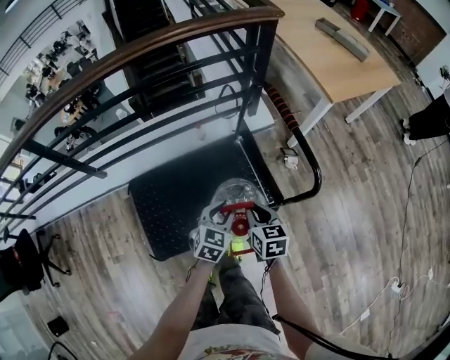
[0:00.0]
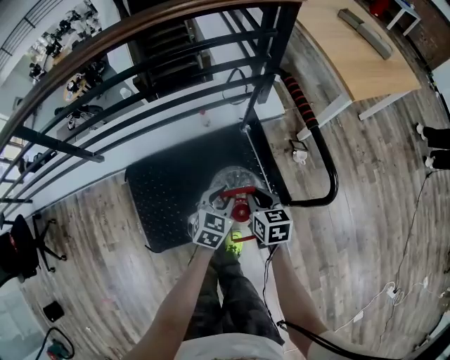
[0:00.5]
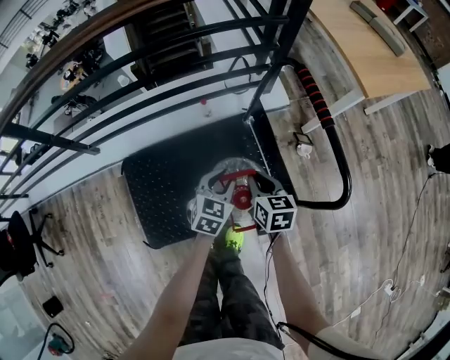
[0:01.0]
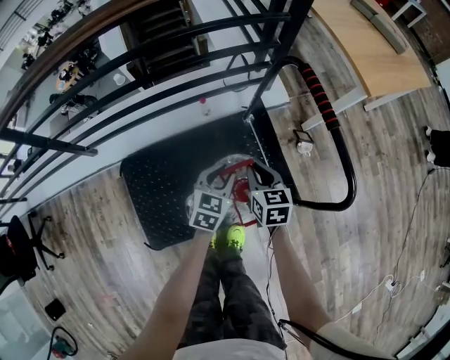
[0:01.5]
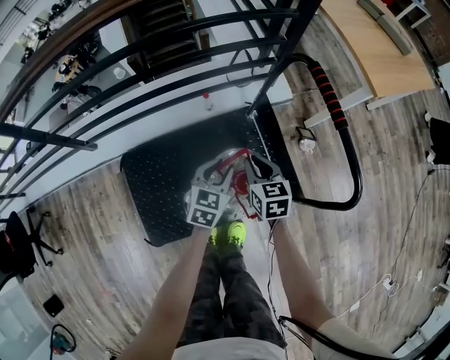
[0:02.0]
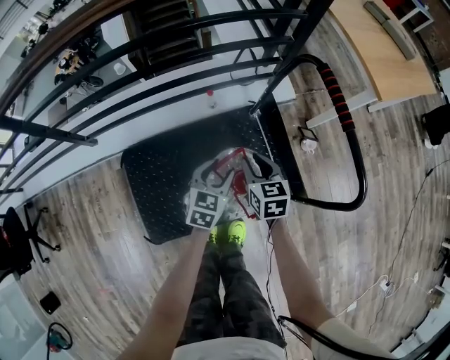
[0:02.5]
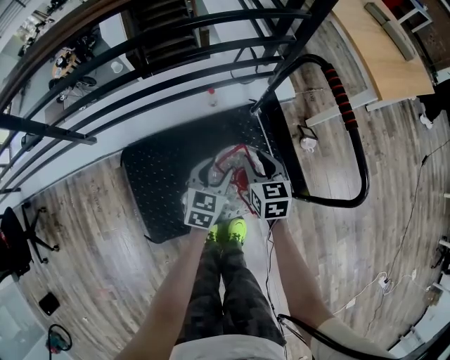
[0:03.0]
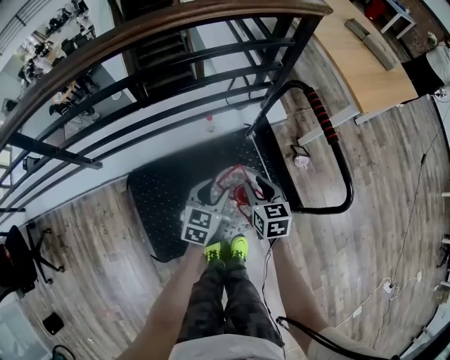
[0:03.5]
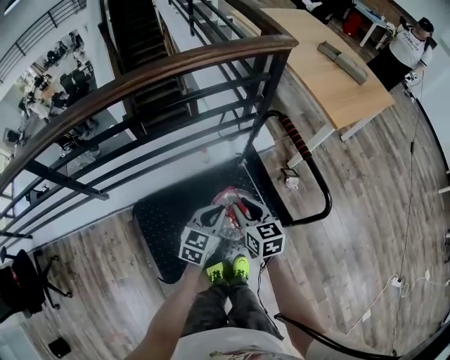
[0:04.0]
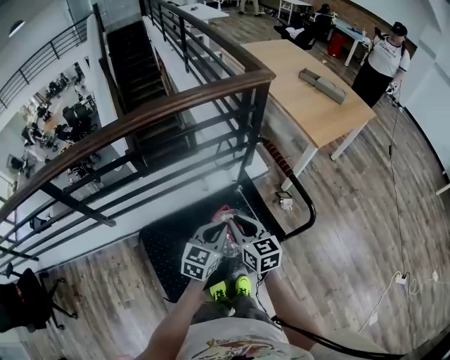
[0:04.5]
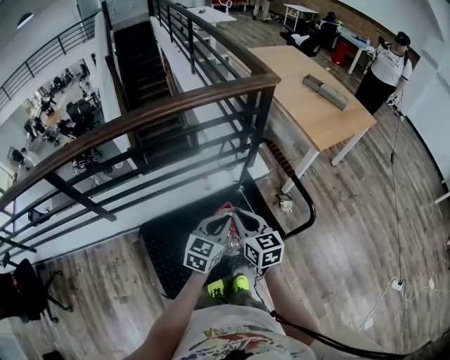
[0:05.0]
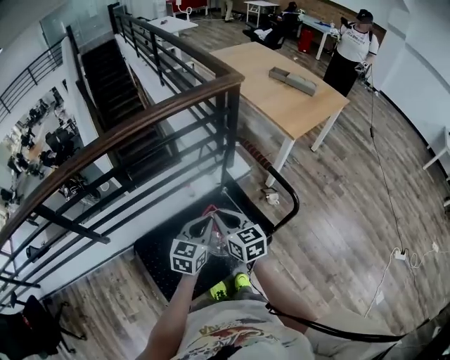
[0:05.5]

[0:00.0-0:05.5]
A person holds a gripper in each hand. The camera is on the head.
0:00.0 to 0:02.0: The grippers both shift forward, downward and to the left by approximately 20 cm.
0:02.0 to 0:03.5: The left gripper heads to the left and upward, covering about 10 cm. Meanwhile the right gripper is displaced upward by approximately 5 cm.
0:03.5 to 0:05.5: The grippers both shift upward by roughly 25 cm. The left gripper closes. Meanwhile the right gripper closes up.

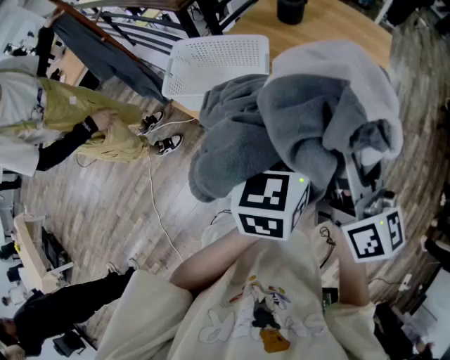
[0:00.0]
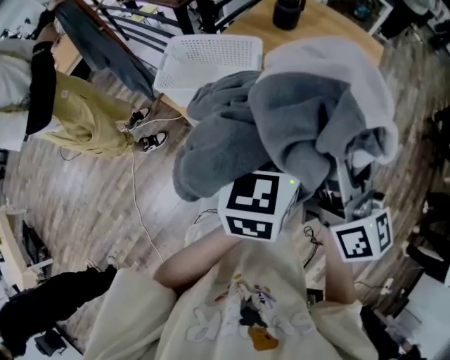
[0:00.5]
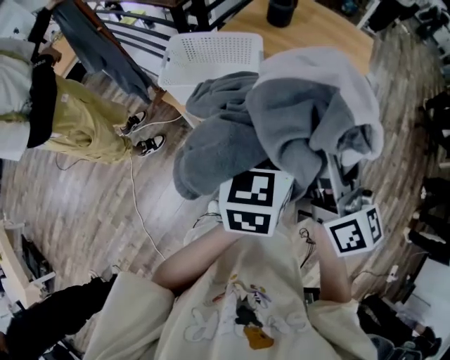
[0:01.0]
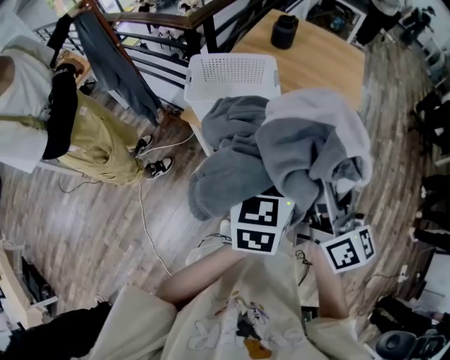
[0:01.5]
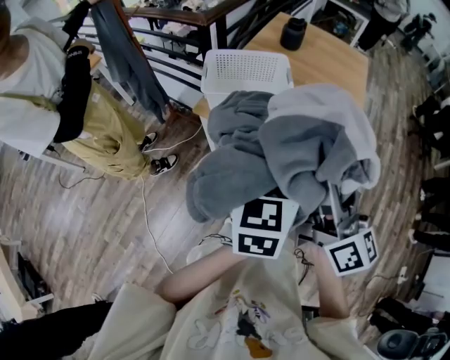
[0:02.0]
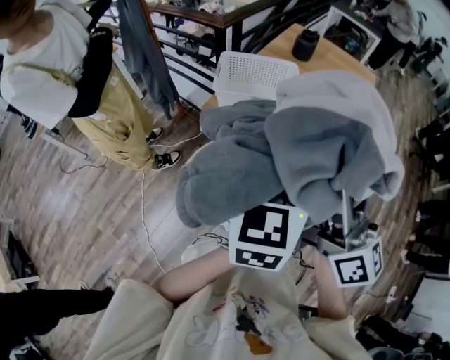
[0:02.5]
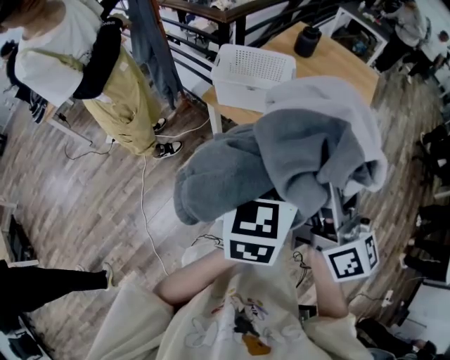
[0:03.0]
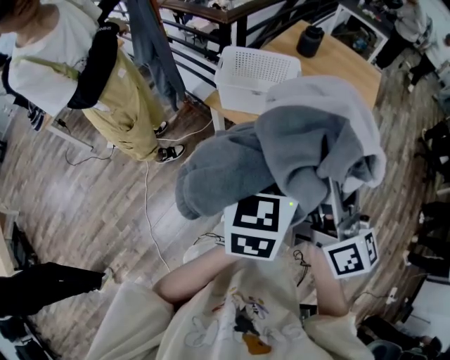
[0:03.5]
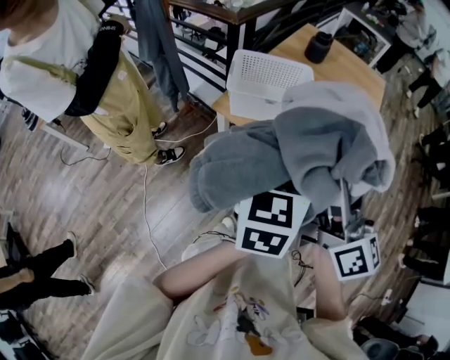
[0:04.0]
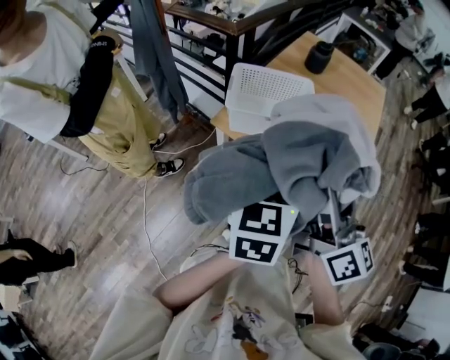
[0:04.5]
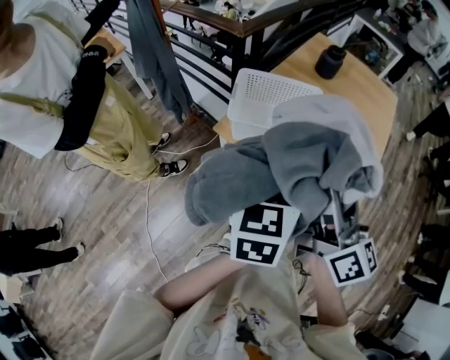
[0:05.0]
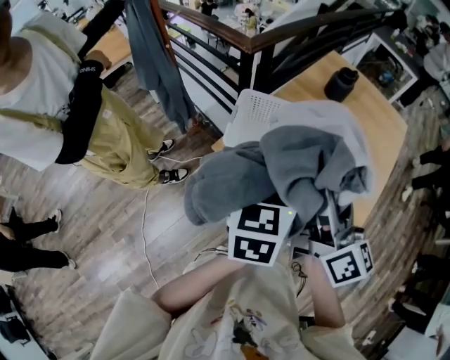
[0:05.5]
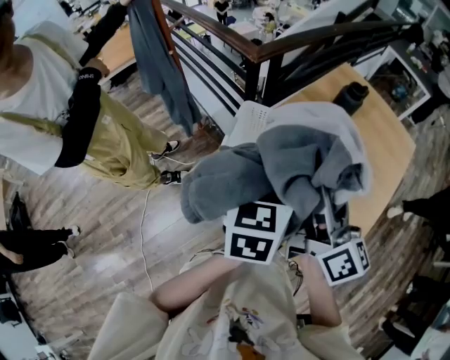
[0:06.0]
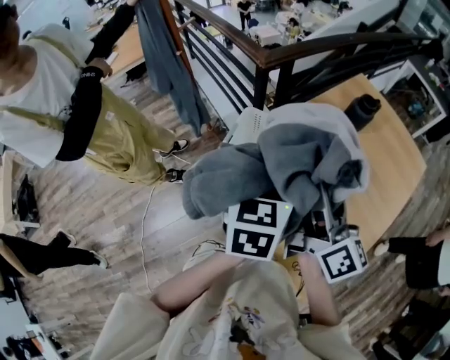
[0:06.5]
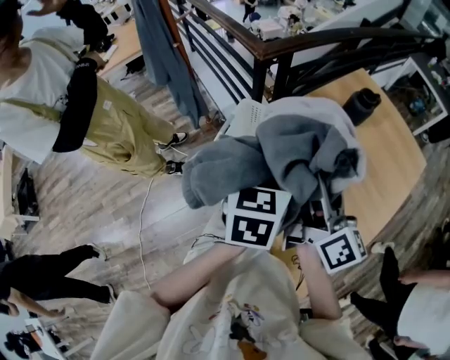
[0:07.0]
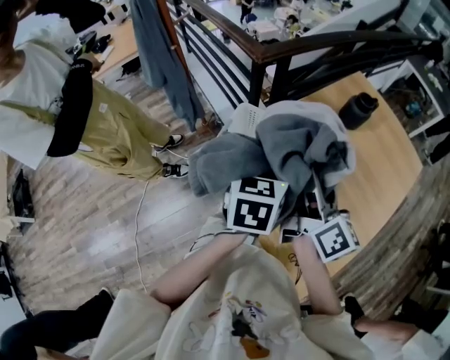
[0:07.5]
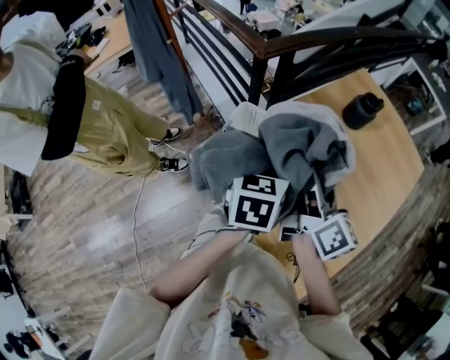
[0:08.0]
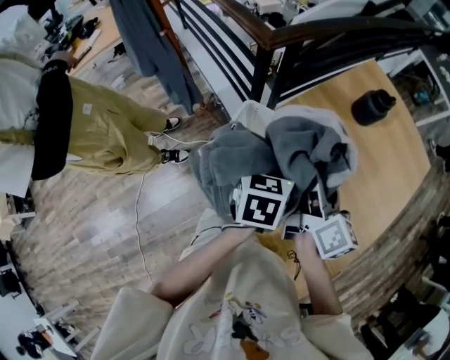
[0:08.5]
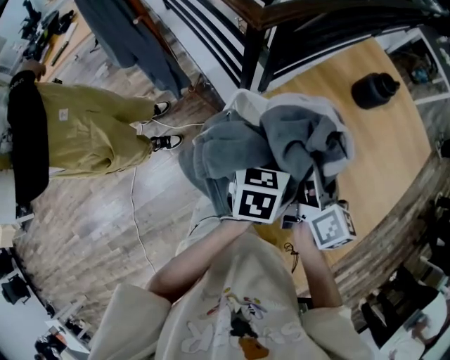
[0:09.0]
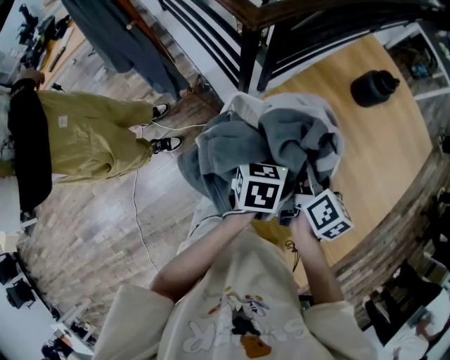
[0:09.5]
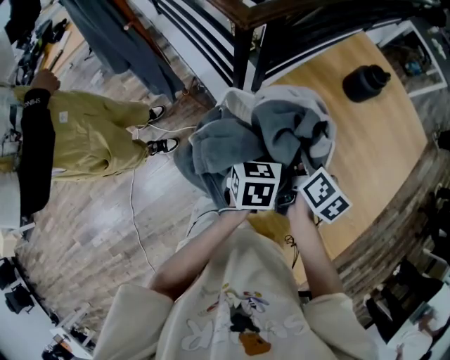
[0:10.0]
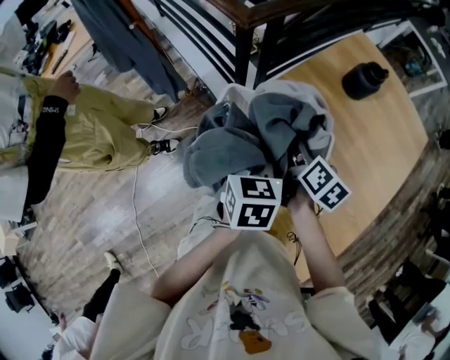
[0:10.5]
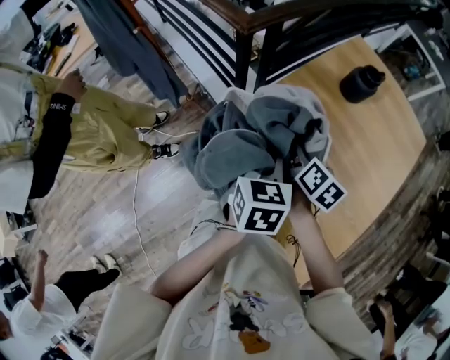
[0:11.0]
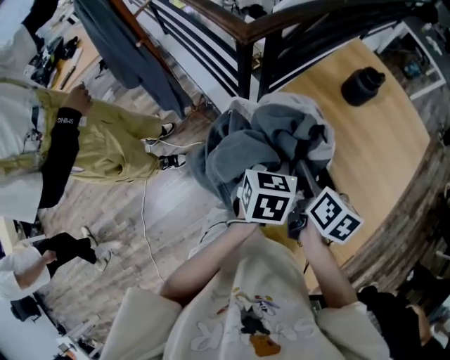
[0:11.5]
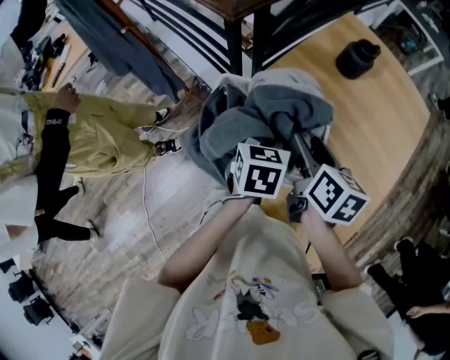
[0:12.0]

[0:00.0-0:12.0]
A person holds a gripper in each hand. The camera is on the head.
0:00.0 to 0:02.0: The grippers both shift to the left and backward by approximately 25 cm.
0:02.0 to 0:04.0: The left gripper shifts by roughly 5 cm. Meanwhile the right gripper moves approximately 5 cm.
0:04.0 to 0:06.0: Both grippers travel together forward, approximately 25 cm.
0:06.0 to 0:08.0: The grippers both shift forward and downward by approximately 15 cm.
0:08.0 to 0:10.0: The two grippers go some 15 cm downward and forward. The right gripper changes its angle by roughly 30 degrees.
0:10.0 to 0:12.0: The left gripper shifts by some 5 cm. Meanwhile the right gripper is displaced backward and upward by about 10 cm.

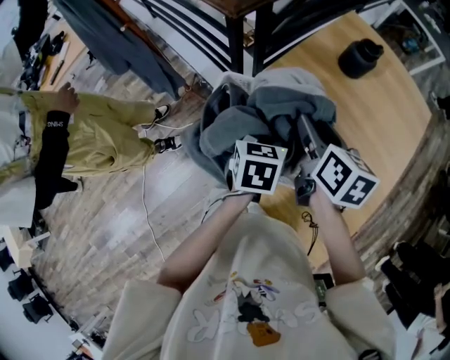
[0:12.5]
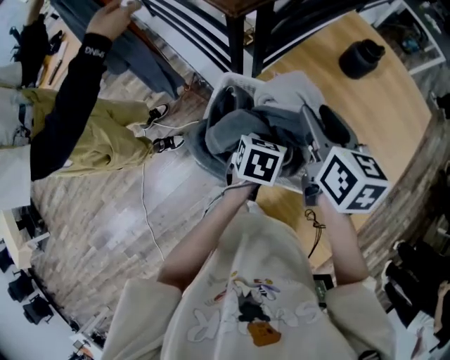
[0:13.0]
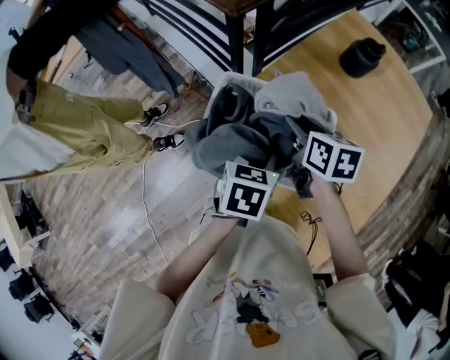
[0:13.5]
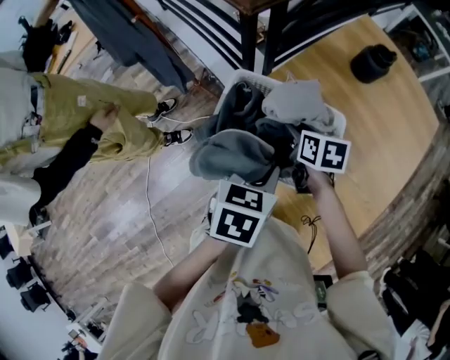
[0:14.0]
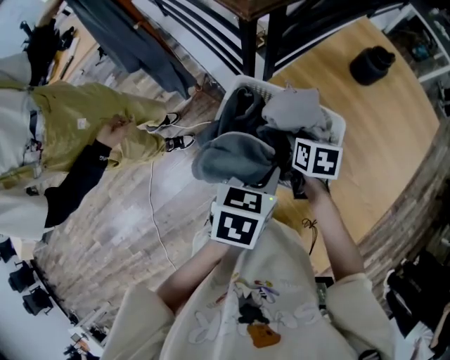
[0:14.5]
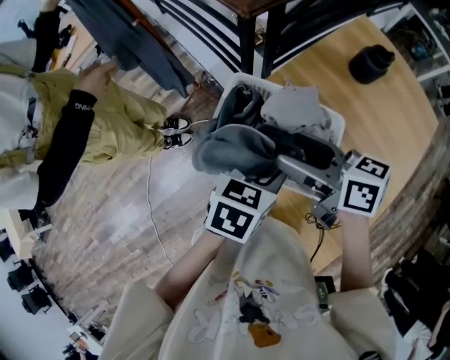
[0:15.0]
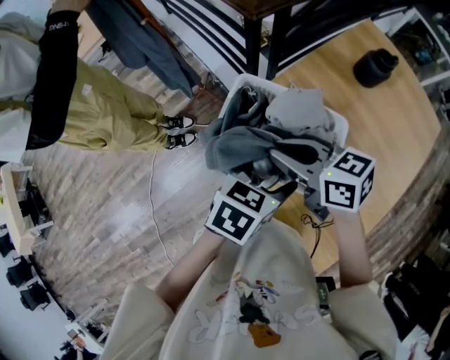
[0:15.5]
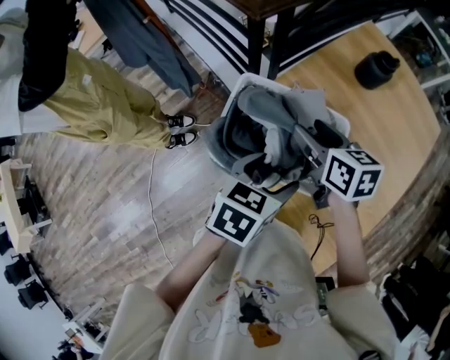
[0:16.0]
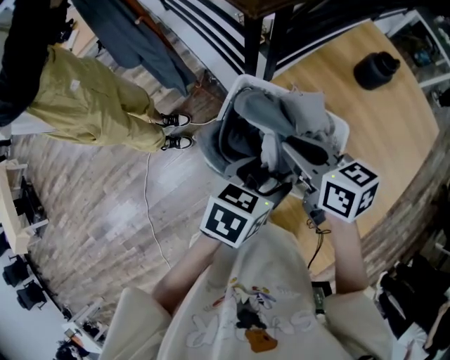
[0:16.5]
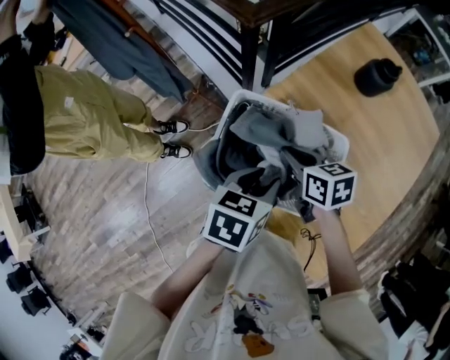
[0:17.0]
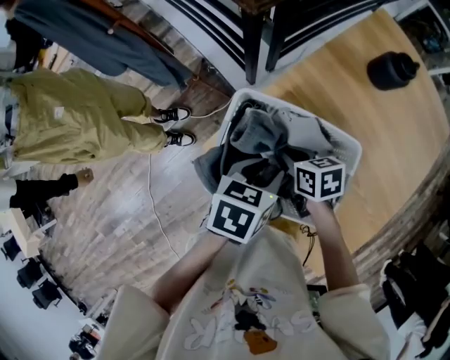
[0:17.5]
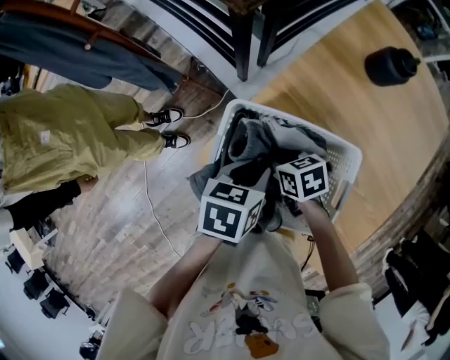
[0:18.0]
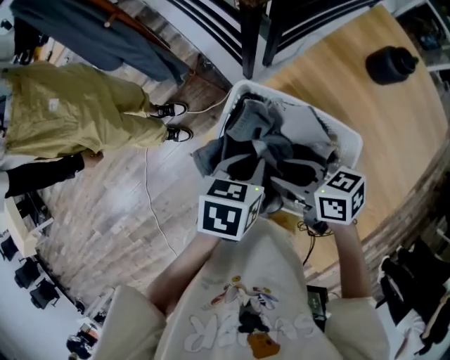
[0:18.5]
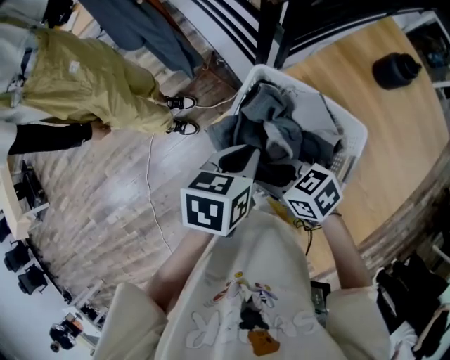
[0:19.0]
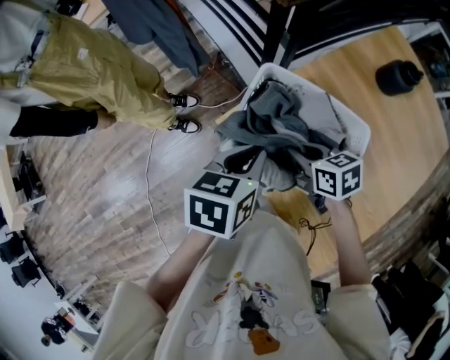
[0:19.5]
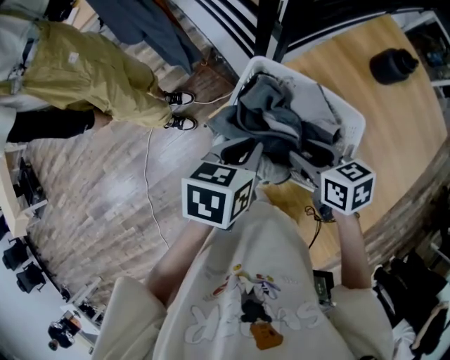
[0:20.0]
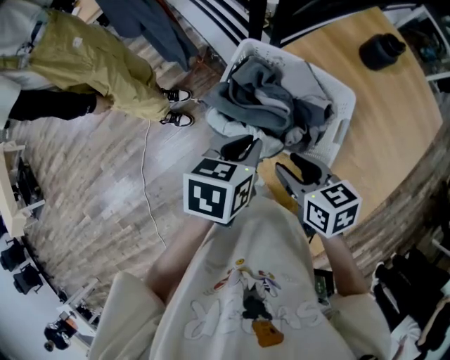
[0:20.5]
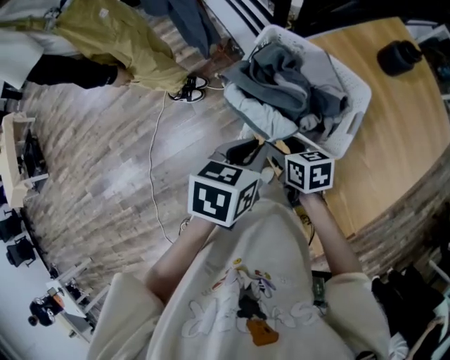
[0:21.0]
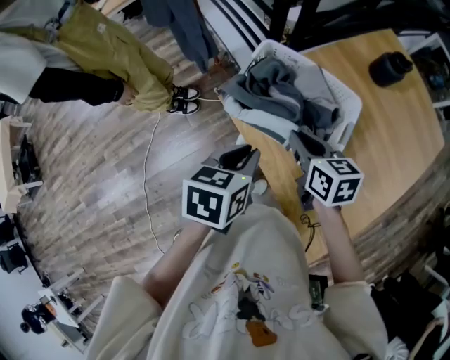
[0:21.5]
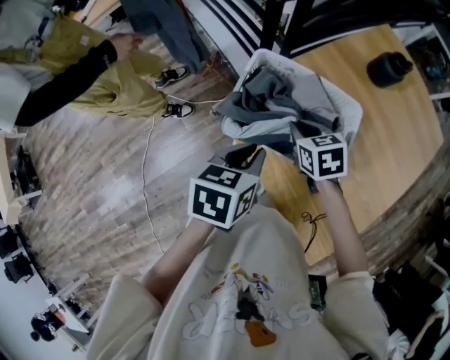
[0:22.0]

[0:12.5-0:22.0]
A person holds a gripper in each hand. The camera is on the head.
0:12.5 to 0:14.5: The right gripper goes about 15 cm downward, and swivels some 30 degrees. The left gripper travels backward by about 10 cm.
0:14.5 to 0:16.5: The right gripper is displaced upward and to the left by some 15 cm, swivels about 30 degrees, and opens and closes again, while the left gripper opens its fingers.
0:16.5 to 0:18.0: The right gripper travels downward by some 20 cm, and turns by about 30 degrees, while the left gripper heads forward and downward, covering about 15 cm, and closes its fingers.
0:18.0 to 0:20.0: The left gripper shifts about 10 cm upward, to the left and backward; the right gripper swings up and down, about 10 cm each way, with 2 reversals, and opens up.
0:20.0 to 0:22.0: The right gripper goes backward and returns, roughly 10 cm each way, changes its angle by approximately 20 degrees, and closes up; the left gripper heads backward, covering approximately 5 cm.
